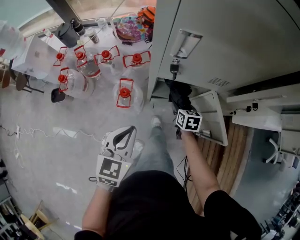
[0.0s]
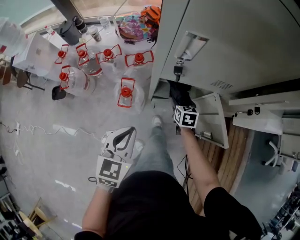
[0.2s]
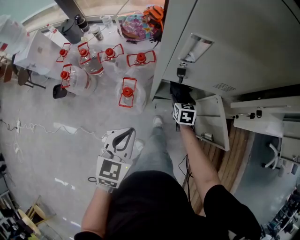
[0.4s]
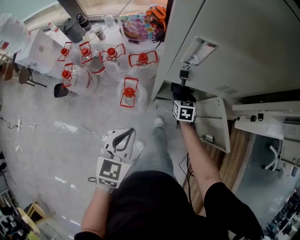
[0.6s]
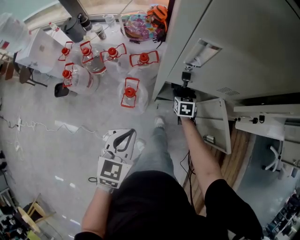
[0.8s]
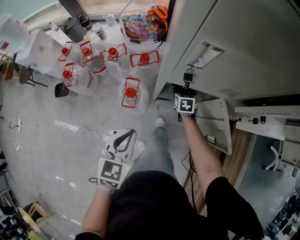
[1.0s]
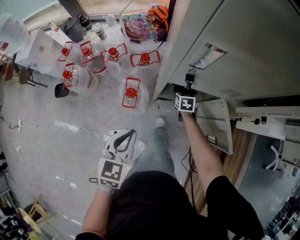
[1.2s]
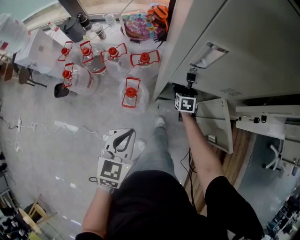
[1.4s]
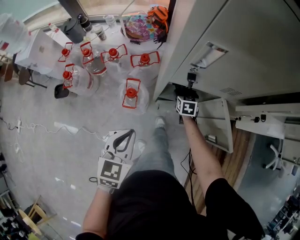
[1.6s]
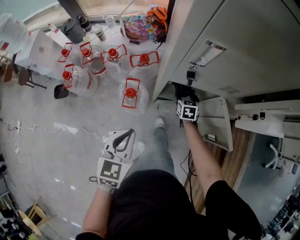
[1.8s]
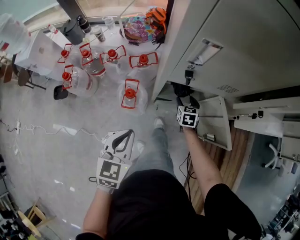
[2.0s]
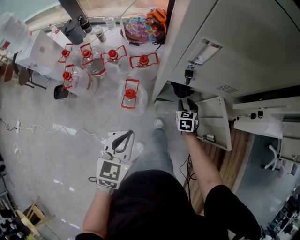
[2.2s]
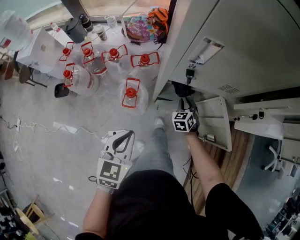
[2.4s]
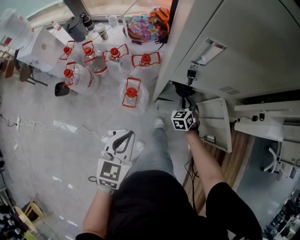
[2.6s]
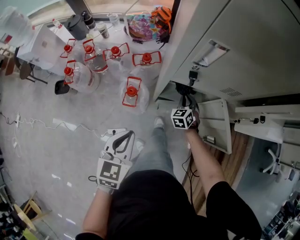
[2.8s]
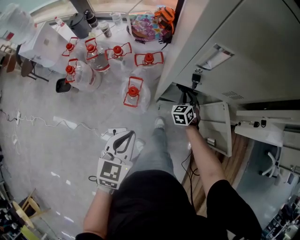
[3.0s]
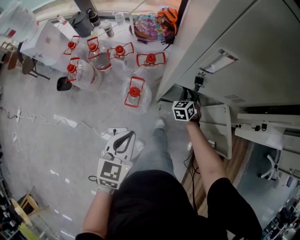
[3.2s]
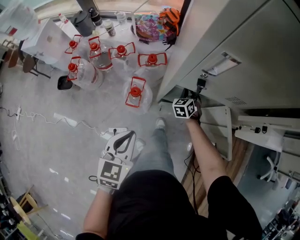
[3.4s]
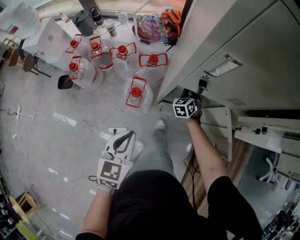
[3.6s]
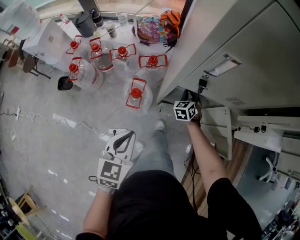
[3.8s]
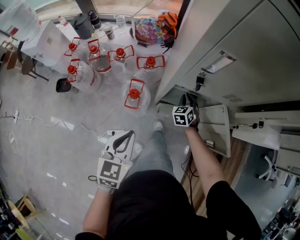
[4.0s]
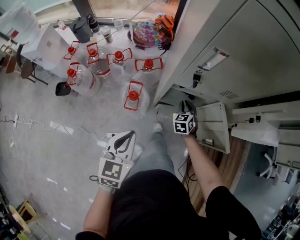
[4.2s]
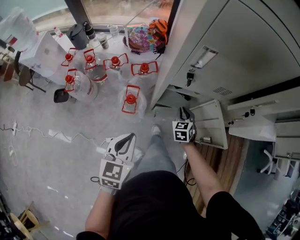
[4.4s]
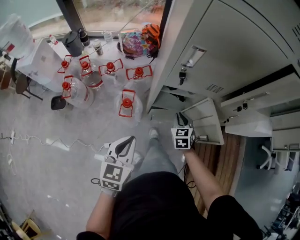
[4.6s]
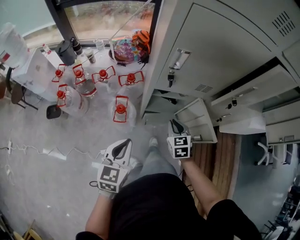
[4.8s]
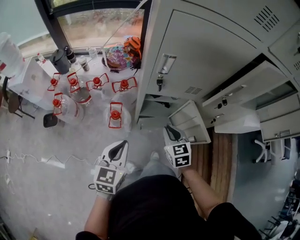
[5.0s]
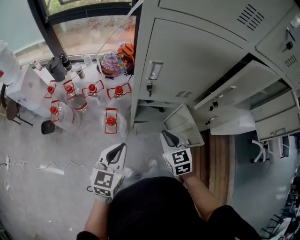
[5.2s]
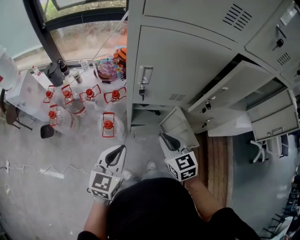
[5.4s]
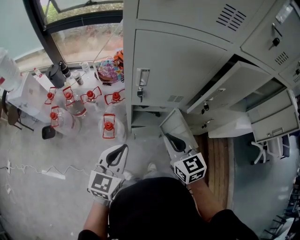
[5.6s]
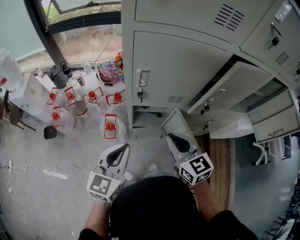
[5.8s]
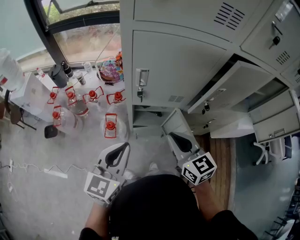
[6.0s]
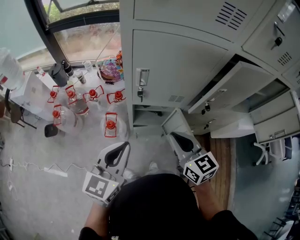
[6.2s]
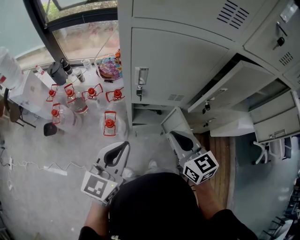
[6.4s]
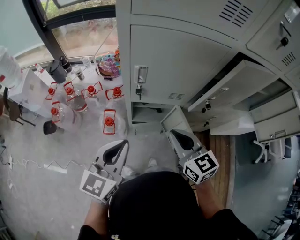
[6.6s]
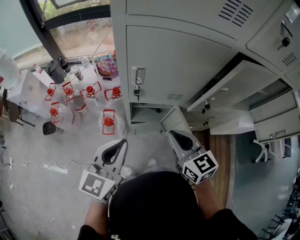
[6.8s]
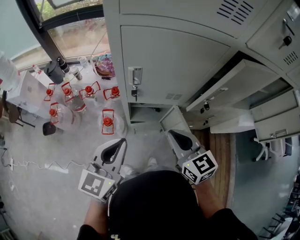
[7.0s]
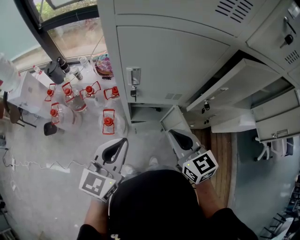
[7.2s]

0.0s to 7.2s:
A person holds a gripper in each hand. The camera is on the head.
0.0s to 1.4s: The right gripper goes approximately 10 cm forward and downward.
1.4s to 2.8s: The right gripper rotates about 30 degrees, and closes up.
2.8s to 4.4s: The right gripper travels backward and upward by some 10 cm.
4.4s to 5.8s: The left gripper is displaced upward and to the right by approximately 20 cm, while the right gripper shifts some 35 cm upward and backward, and rotates about 30 degrees.
5.8s to 7.2s: The grippers stay close to where they were, moving slightly.

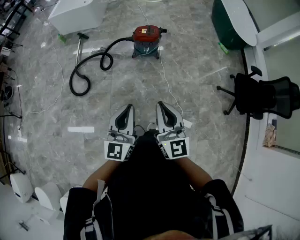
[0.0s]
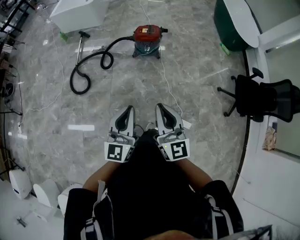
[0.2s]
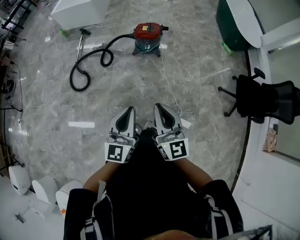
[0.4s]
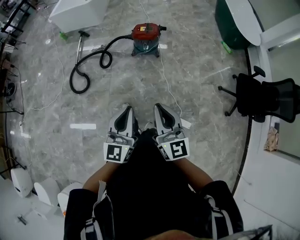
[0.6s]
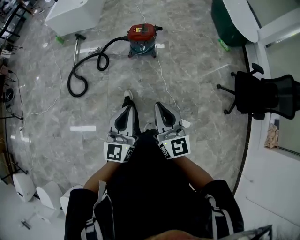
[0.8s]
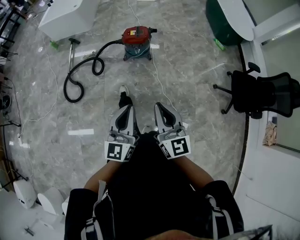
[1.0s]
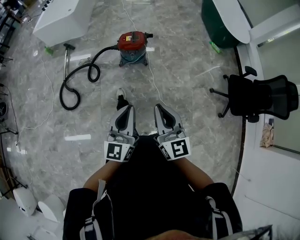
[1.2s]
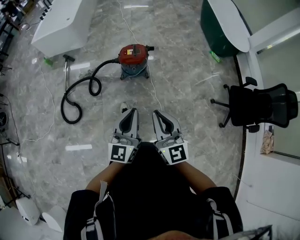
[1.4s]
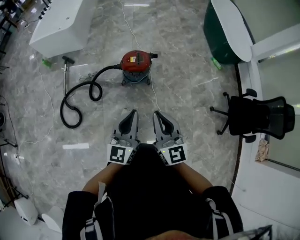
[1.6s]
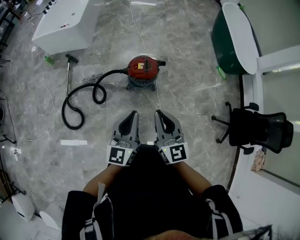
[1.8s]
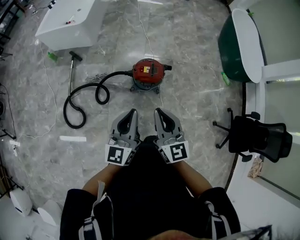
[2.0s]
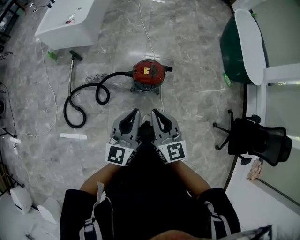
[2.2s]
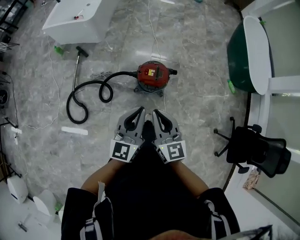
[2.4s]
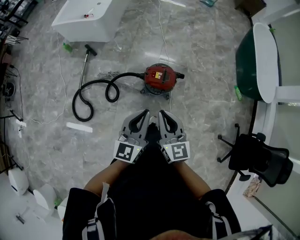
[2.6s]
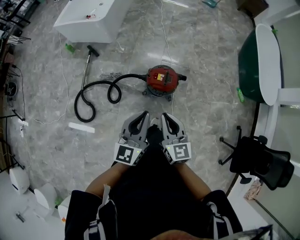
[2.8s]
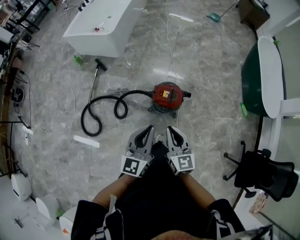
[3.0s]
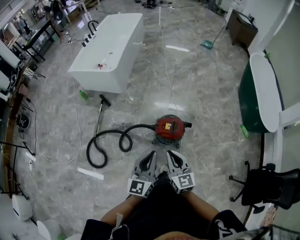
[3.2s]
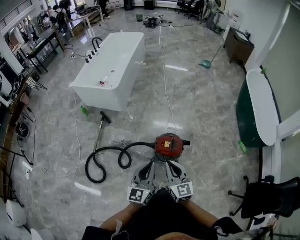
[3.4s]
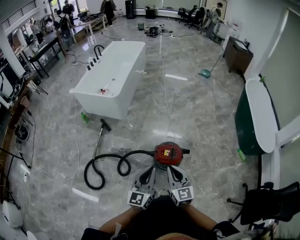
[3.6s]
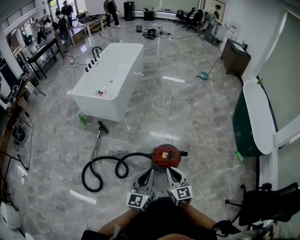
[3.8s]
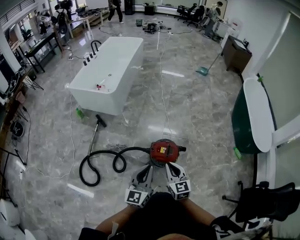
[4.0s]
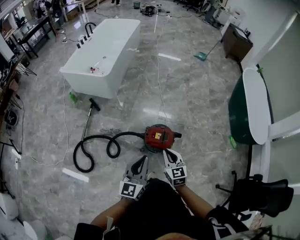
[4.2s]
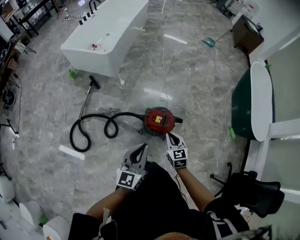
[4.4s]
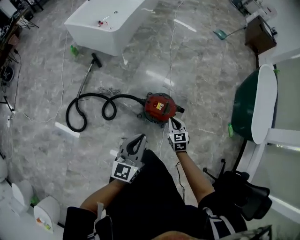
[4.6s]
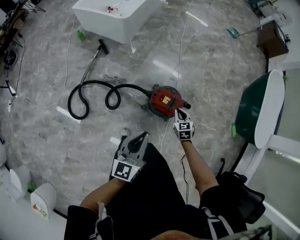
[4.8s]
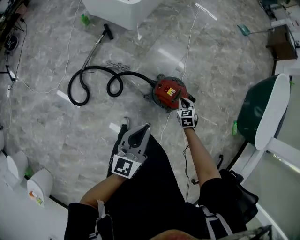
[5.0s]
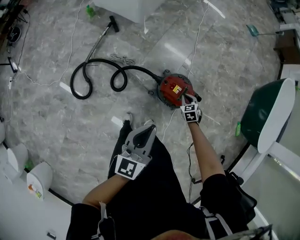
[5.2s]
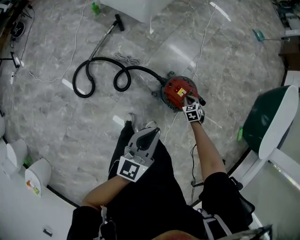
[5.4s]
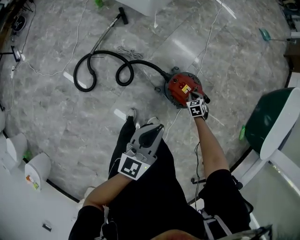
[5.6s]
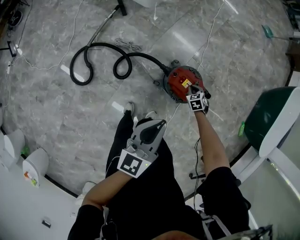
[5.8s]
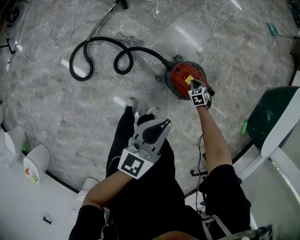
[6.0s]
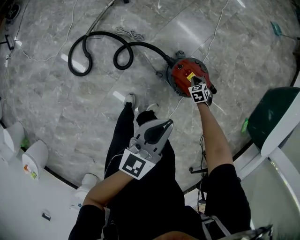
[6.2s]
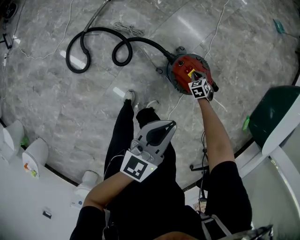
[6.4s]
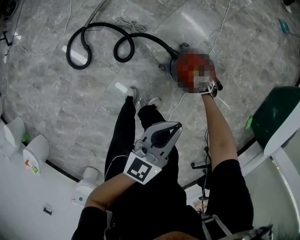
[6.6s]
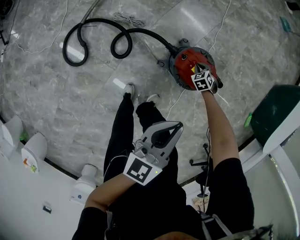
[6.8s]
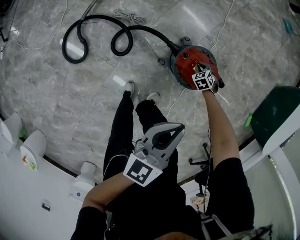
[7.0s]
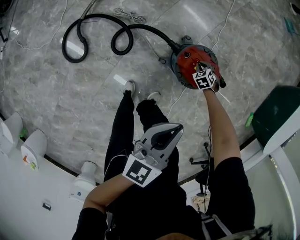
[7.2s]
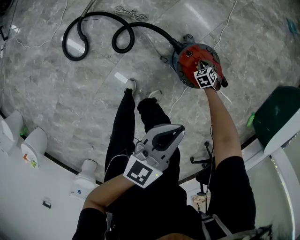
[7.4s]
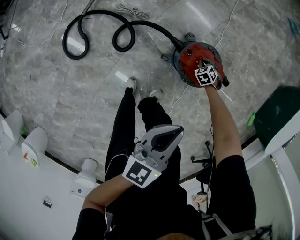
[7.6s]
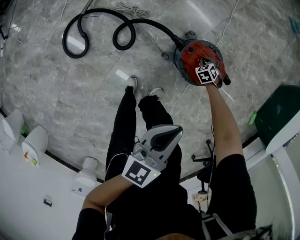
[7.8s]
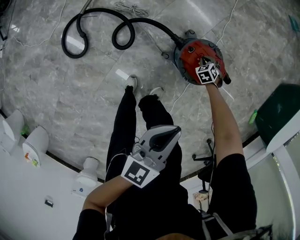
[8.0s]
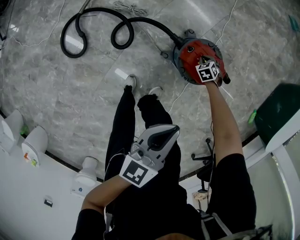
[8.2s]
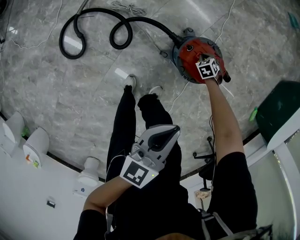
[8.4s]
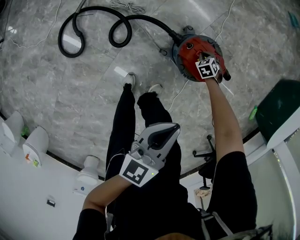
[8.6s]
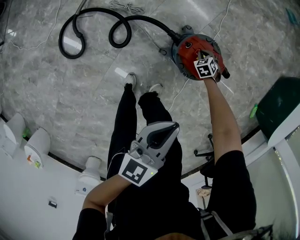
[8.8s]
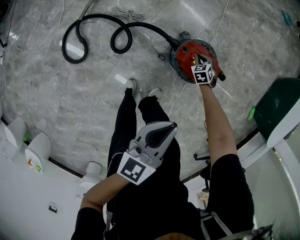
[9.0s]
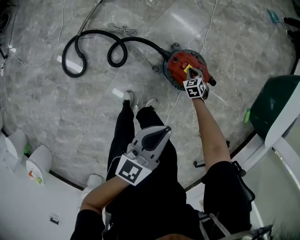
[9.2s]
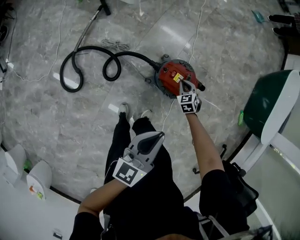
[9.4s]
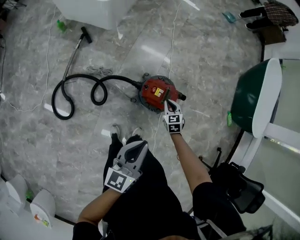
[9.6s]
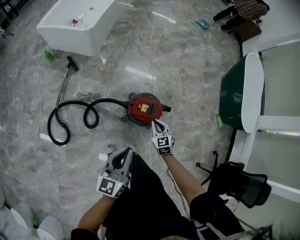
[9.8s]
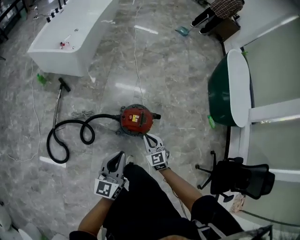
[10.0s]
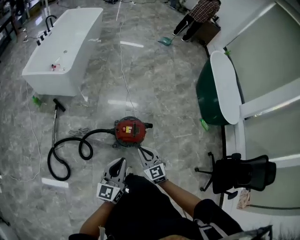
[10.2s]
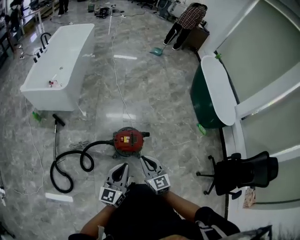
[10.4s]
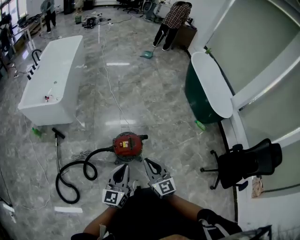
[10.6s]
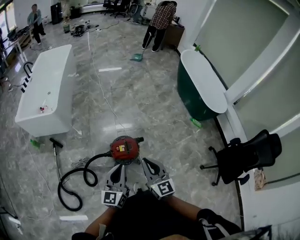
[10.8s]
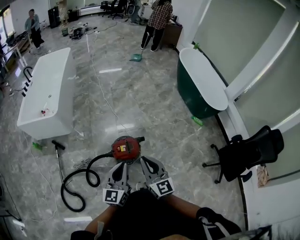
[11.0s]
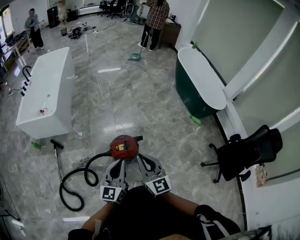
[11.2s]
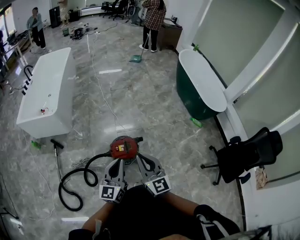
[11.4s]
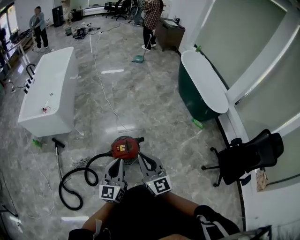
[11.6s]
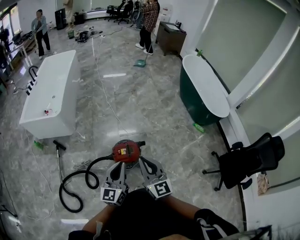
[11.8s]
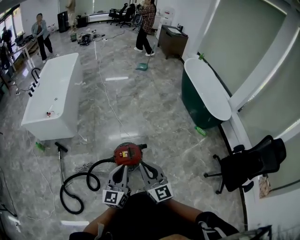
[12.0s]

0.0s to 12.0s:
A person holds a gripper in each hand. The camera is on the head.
0.0s to 1.6s: Both grippers travel together forward, some 30 cm.
1.6s to 3.0s: The two grippers go approximately 25 cm forward.
3.0s to 4.4s: The left gripper travels forward by about 5 cm. Meanwhile the right gripper goes some 15 cm forward and downward, and changes its angle by approximately 20 degrees.
4.4s to 6.0s: The left gripper shifts roughly 15 cm downward, while the right gripper moves downward, about 40 cm, and tips its fingers downward by some 30 degrees.
6.0s to 7.6s: The right gripper travels downward by some 15 cm; the left gripper is displaced downward by some 10 cm.
7.6s to 9.0s: The right gripper goes approximately 5 cm upward.
9.0s to 10.4s: The left gripper heads upward, covering some 20 cm, and turns by roughly 30 degrees, while the right gripper goes about 60 cm upward and backward, and tips its fingers upward by some 50 degrees.
10.4s to 12.0s: The left gripper is displaced to the right by approximately 5 cm; the right gripper travels upward by about 10 cm.

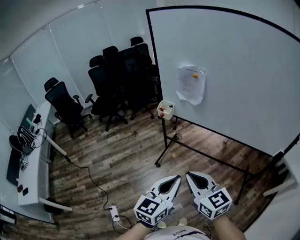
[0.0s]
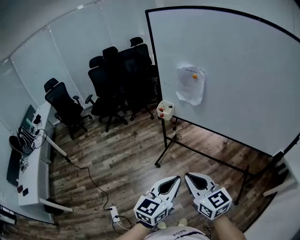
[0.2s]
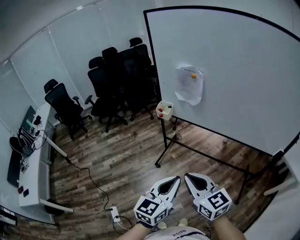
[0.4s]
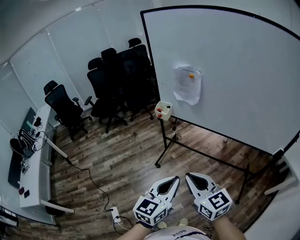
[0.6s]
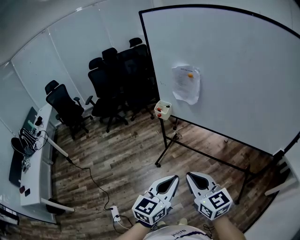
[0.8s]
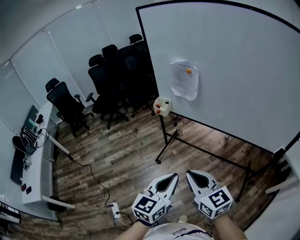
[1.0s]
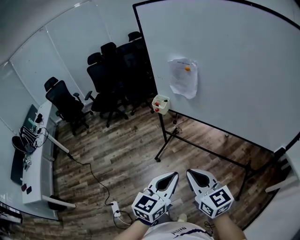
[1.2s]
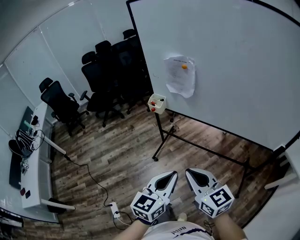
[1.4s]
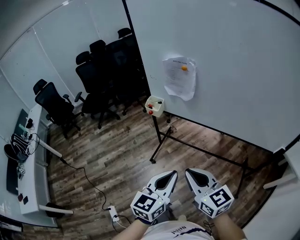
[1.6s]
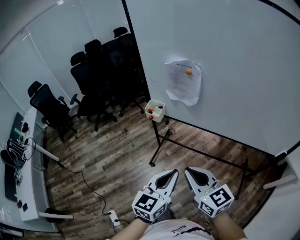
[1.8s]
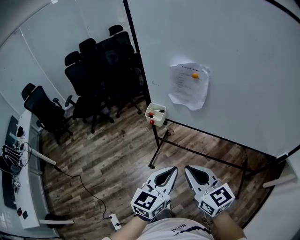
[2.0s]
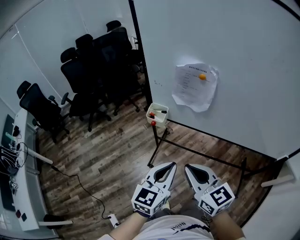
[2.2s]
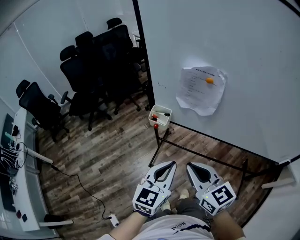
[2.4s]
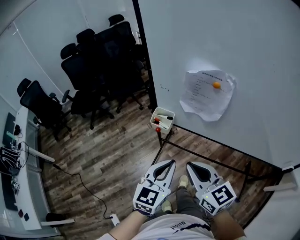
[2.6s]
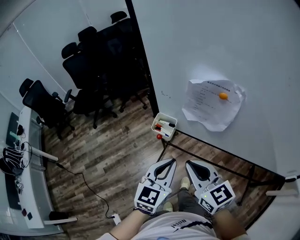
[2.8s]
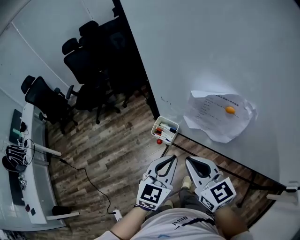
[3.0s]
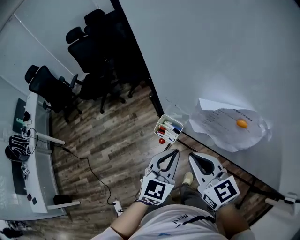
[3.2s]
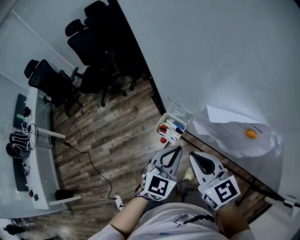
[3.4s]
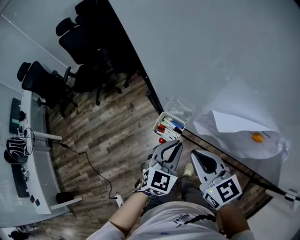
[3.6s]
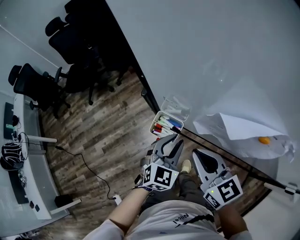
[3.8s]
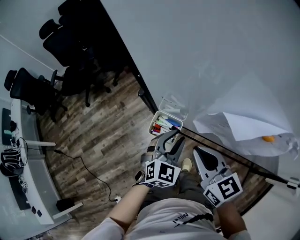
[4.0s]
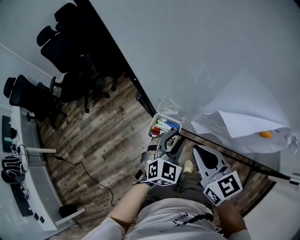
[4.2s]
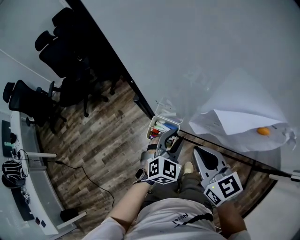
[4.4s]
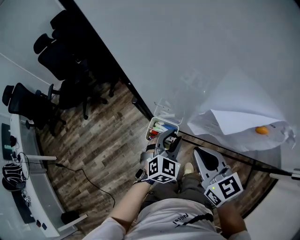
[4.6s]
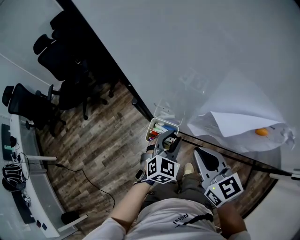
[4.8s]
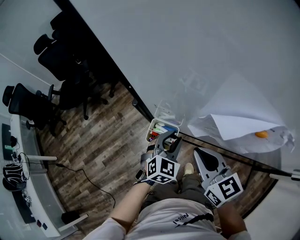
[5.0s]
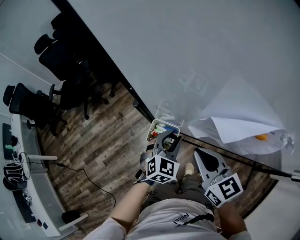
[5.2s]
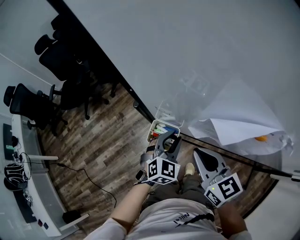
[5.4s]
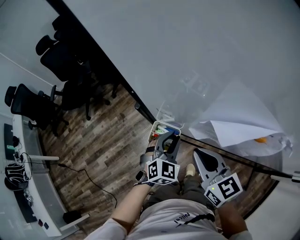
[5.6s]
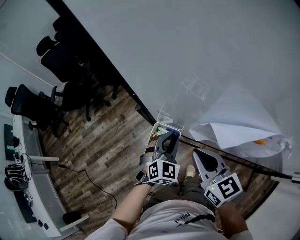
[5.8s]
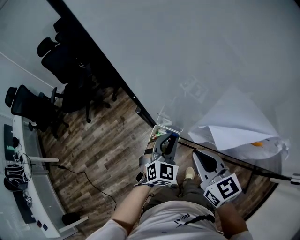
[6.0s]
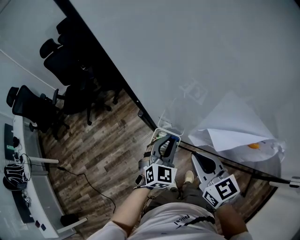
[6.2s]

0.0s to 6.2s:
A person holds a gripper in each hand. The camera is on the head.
0.0s to 1.6s: The grippers both shift forward by some 10 cm.
1.6s to 3.2s: The pair of grippers is taken forward, roughly 40 cm. The left gripper turns by about 20 degrees.
3.2s to 4.6s: The left gripper goes roughly 15 cm downward and forward, swivels about 30 degrees, and opens. The right gripper travels downward by approximately 5 cm.
4.6s to 6.2s: The left gripper shifts by approximately 5 cm.
